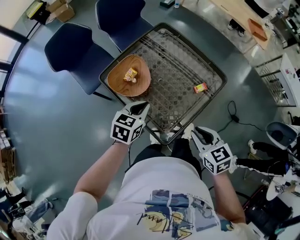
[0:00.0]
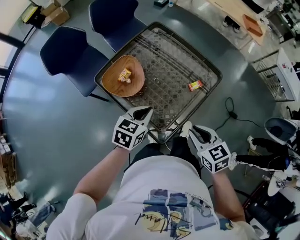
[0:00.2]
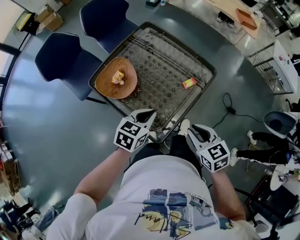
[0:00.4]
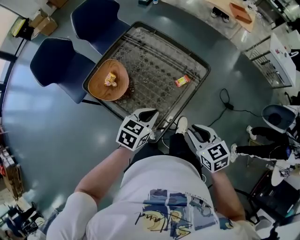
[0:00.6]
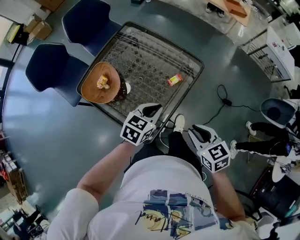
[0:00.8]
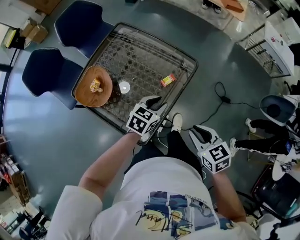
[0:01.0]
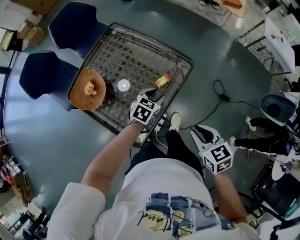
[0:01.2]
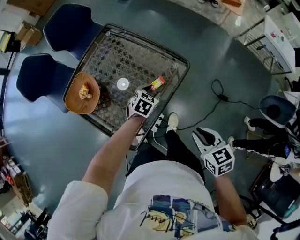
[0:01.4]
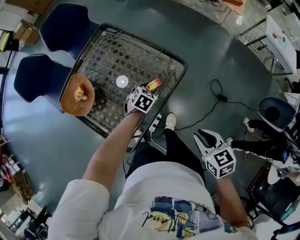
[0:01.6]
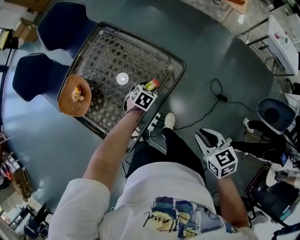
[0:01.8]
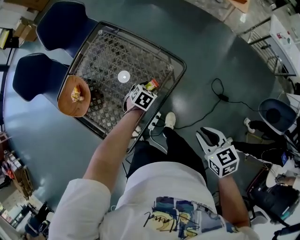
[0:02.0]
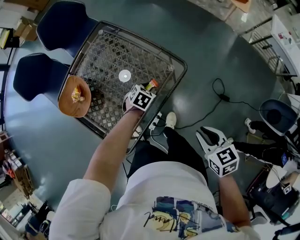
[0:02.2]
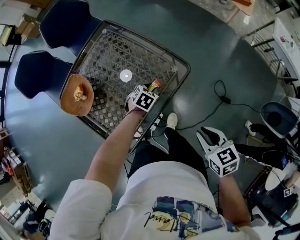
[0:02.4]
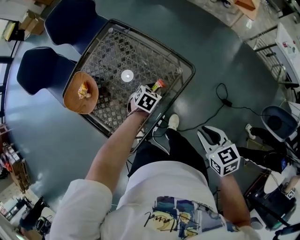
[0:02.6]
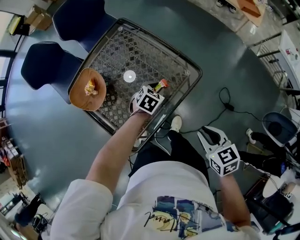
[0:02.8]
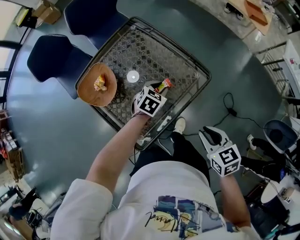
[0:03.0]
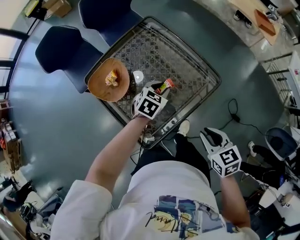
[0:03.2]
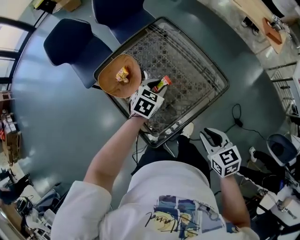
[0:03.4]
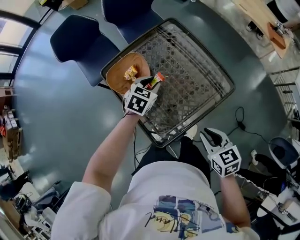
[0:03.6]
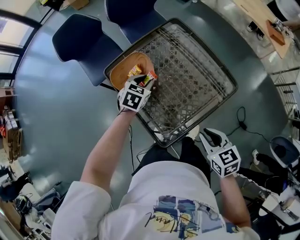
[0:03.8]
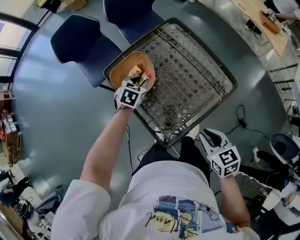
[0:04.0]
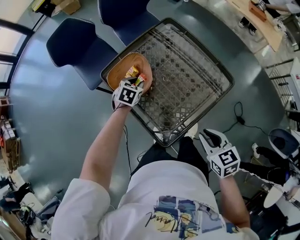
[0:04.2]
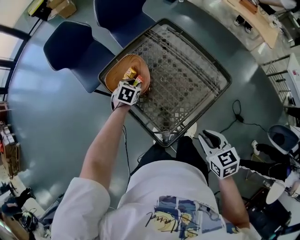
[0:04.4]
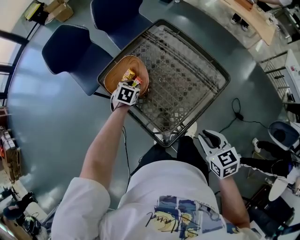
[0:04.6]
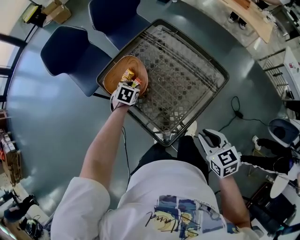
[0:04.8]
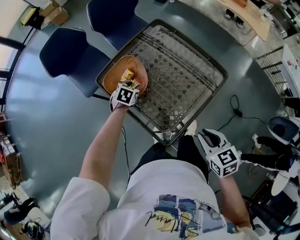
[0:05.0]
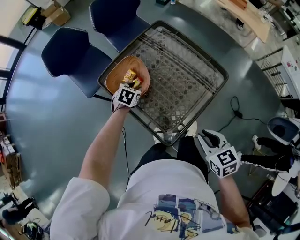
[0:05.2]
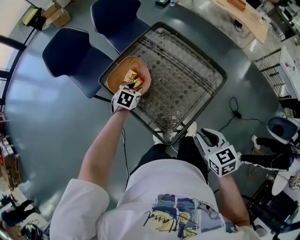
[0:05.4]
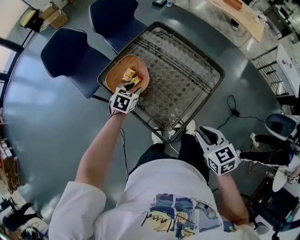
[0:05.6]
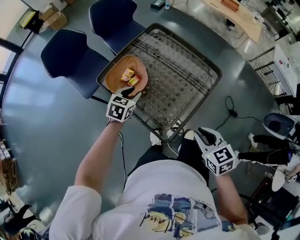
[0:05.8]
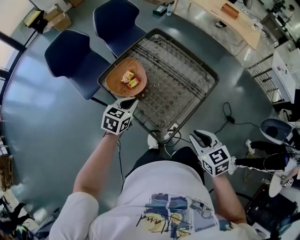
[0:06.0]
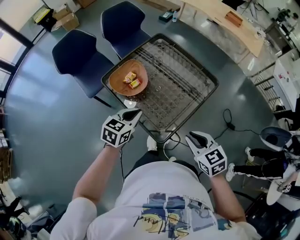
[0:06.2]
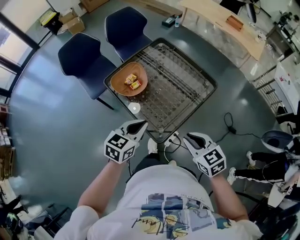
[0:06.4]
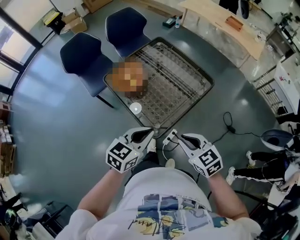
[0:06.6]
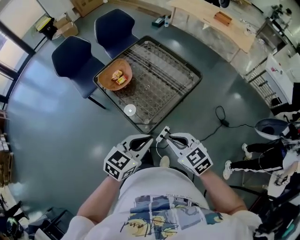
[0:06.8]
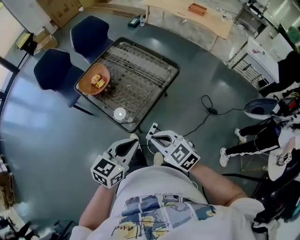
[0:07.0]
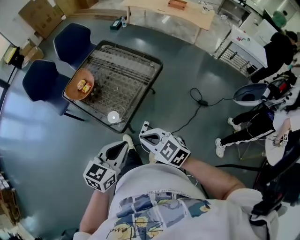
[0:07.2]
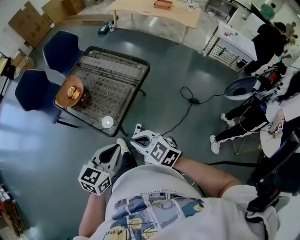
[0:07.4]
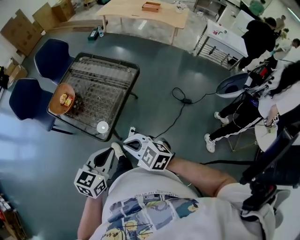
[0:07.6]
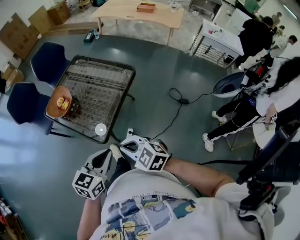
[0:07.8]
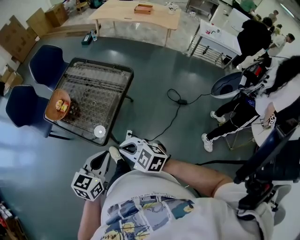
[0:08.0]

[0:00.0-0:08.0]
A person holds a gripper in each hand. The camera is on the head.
0:00.0 to 0:01.6: The left gripper travels to the right, downward and forward by roughly 35 cm, rotates roughly 30 degrees, and opens up. The right gripper heads to the right, covering roughly 25 cm.
0:01.6 to 0:03.2: The right gripper shifts some 10 cm to the left; the left gripper is displaced to the left and upward by some 15 cm.
0:03.2 to 0:04.8: The left gripper heads to the left, covering about 25 cm, while the right gripper travels to the left by approximately 10 cm.
0:04.8 to 0:06.4: The left gripper goes some 35 cm backward and upward, tilts its fingers approximately 30 degrees upward, and closes up. The right gripper moves backward, roughly 10 cm.
0:06.4 to 0:08.0: The right gripper goes about 10 cm backward; the left gripper is displaced backward and to the right by approximately 25 cm.

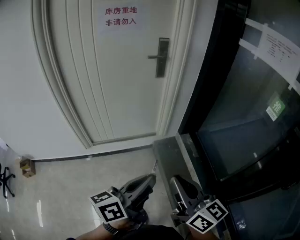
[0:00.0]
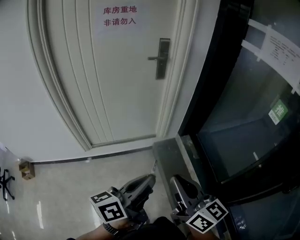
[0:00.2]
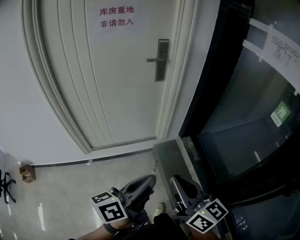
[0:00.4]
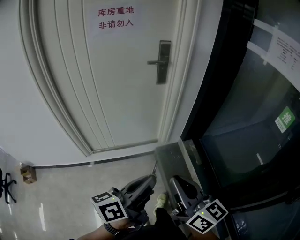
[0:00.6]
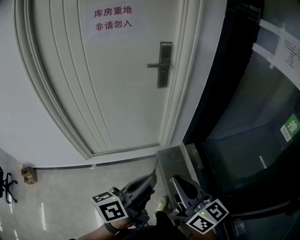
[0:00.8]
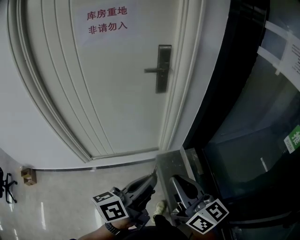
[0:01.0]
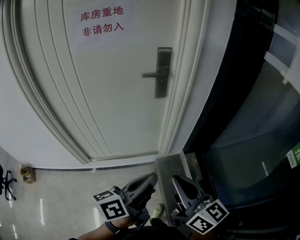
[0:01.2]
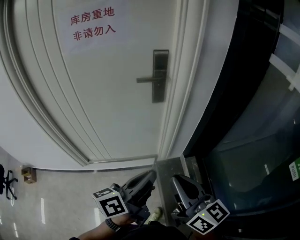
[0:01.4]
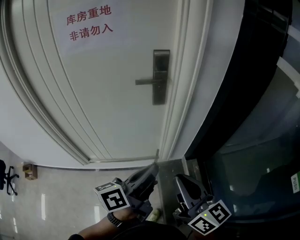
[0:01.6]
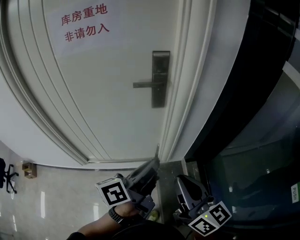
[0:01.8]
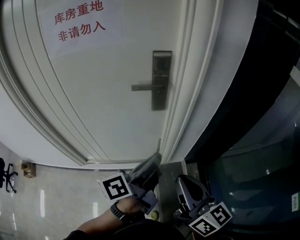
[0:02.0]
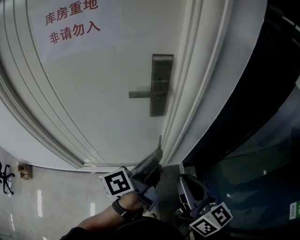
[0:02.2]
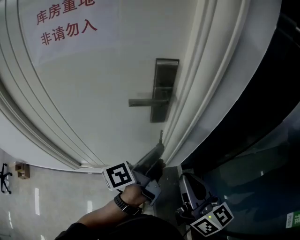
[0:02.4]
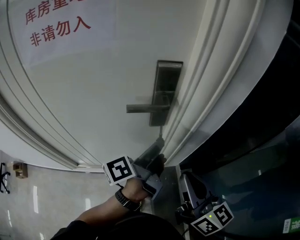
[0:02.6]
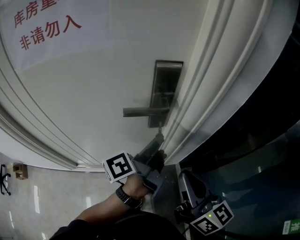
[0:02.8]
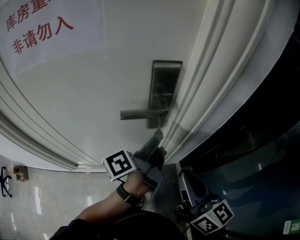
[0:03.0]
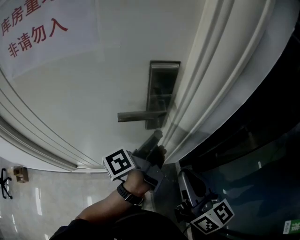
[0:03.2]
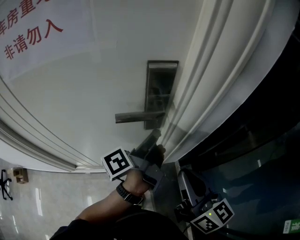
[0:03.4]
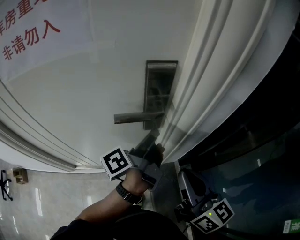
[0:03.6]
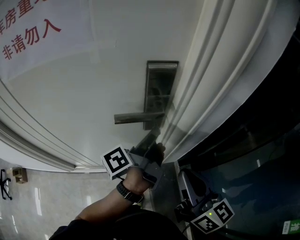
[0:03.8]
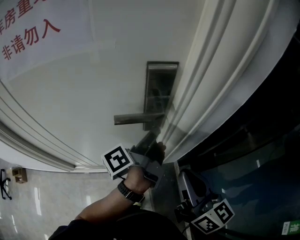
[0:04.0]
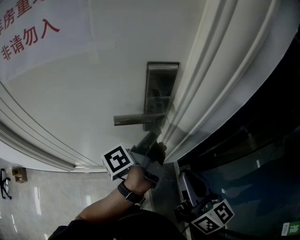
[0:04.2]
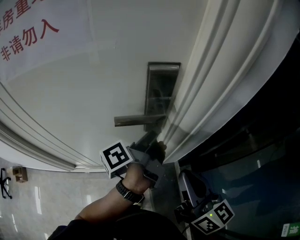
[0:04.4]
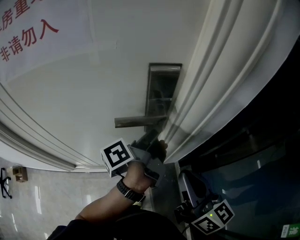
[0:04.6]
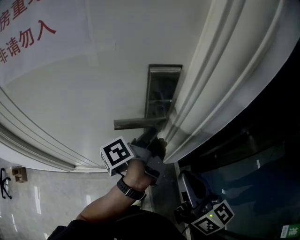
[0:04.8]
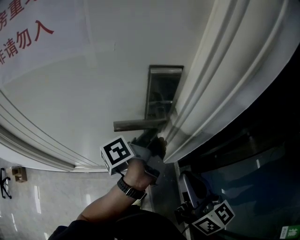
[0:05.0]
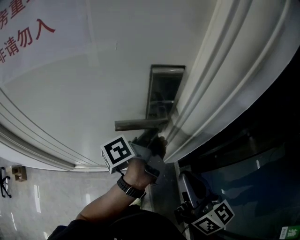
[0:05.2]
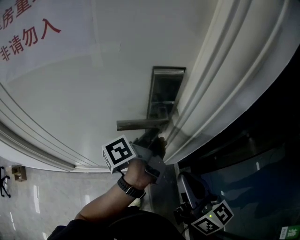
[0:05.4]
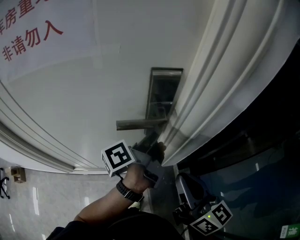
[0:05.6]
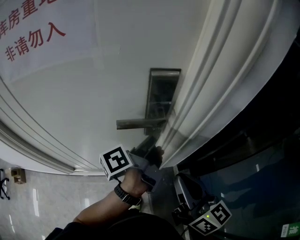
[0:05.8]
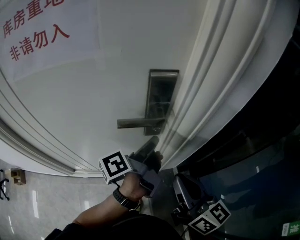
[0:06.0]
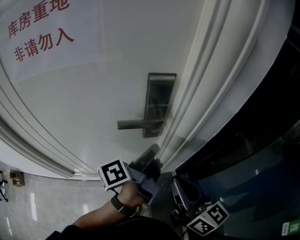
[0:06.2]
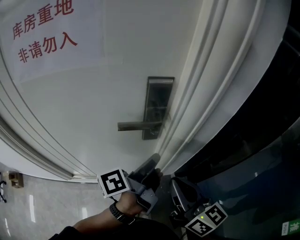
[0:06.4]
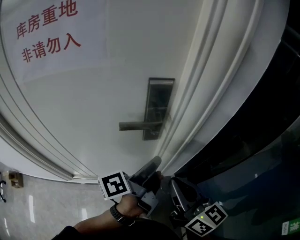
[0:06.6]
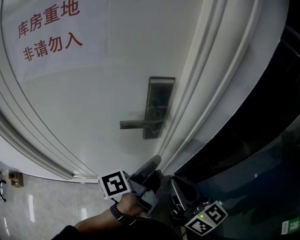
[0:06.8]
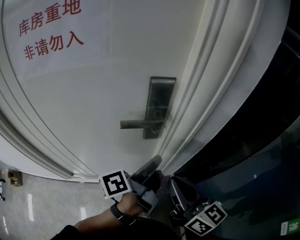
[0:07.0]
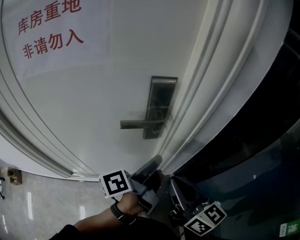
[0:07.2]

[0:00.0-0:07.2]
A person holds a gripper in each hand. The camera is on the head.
0:00.0 to 0:01.4: The right gripper moves approximately 30 cm.
0:01.4 to 0:02.8: The right gripper changes place by approximately 25 cm.

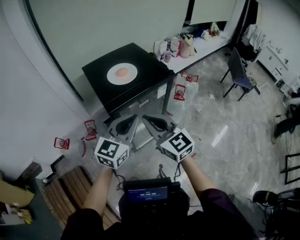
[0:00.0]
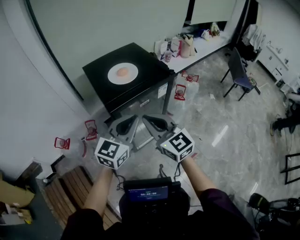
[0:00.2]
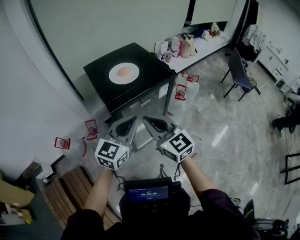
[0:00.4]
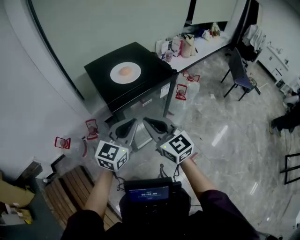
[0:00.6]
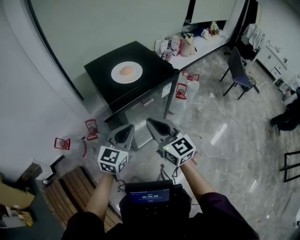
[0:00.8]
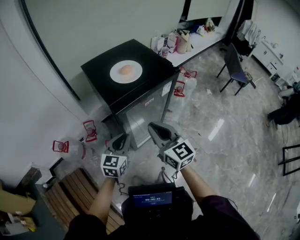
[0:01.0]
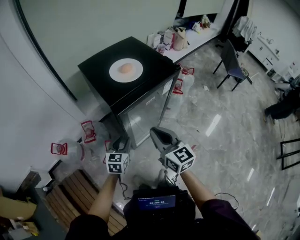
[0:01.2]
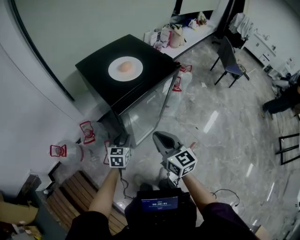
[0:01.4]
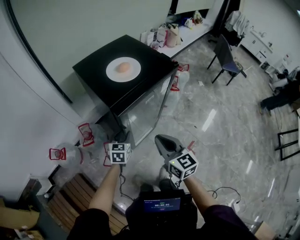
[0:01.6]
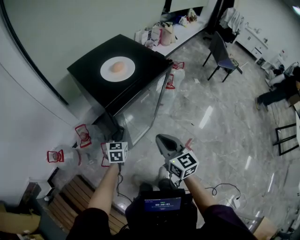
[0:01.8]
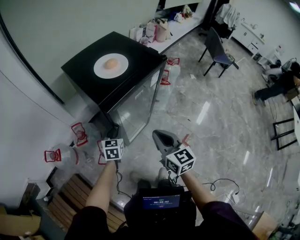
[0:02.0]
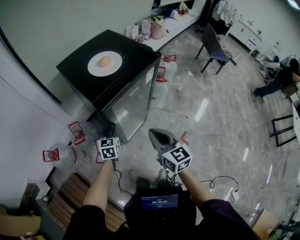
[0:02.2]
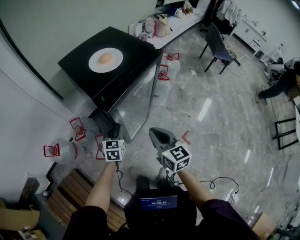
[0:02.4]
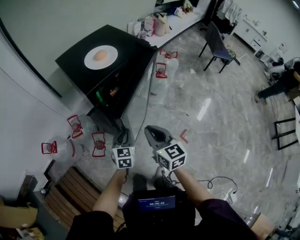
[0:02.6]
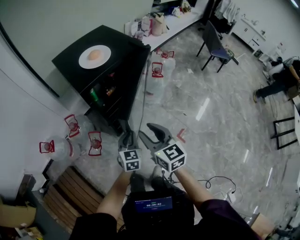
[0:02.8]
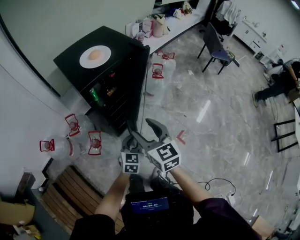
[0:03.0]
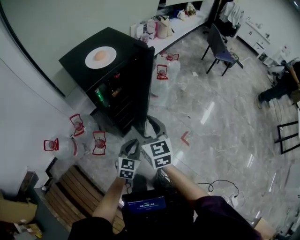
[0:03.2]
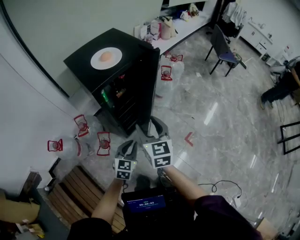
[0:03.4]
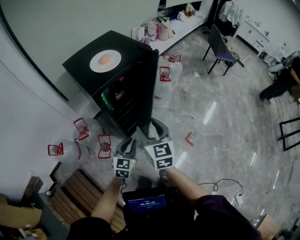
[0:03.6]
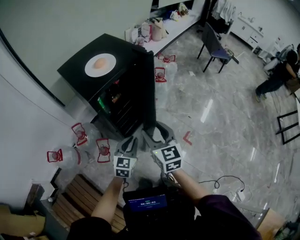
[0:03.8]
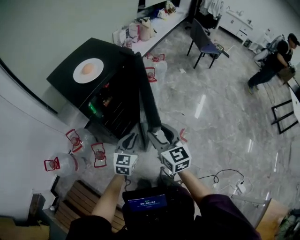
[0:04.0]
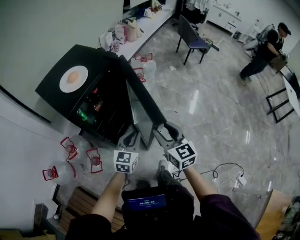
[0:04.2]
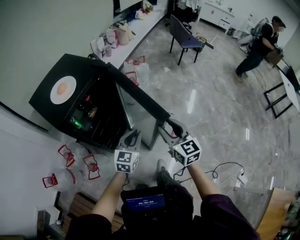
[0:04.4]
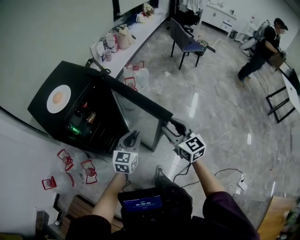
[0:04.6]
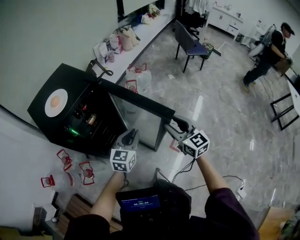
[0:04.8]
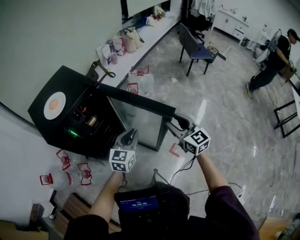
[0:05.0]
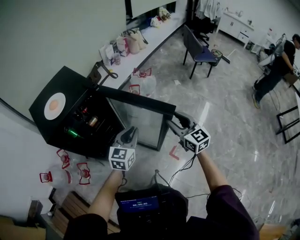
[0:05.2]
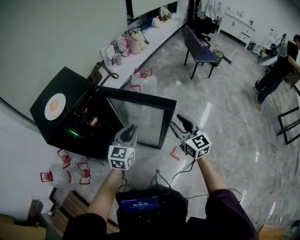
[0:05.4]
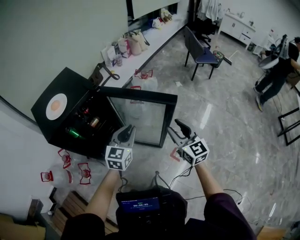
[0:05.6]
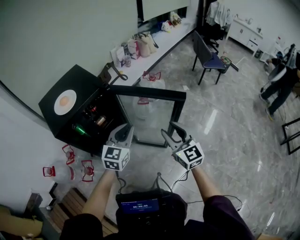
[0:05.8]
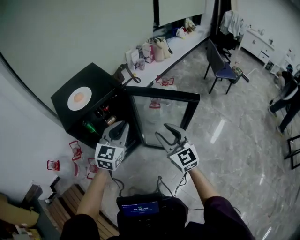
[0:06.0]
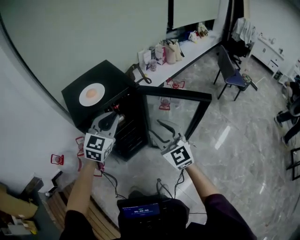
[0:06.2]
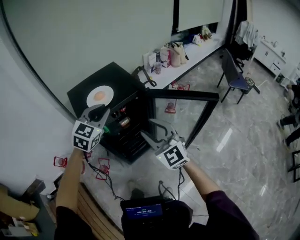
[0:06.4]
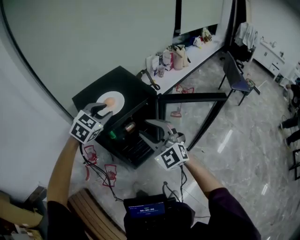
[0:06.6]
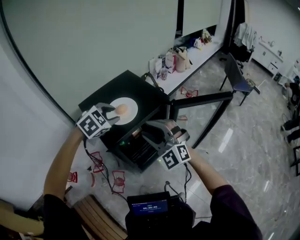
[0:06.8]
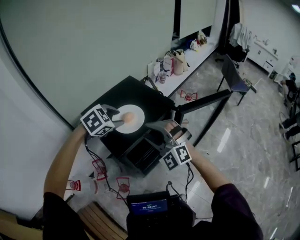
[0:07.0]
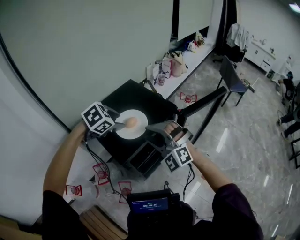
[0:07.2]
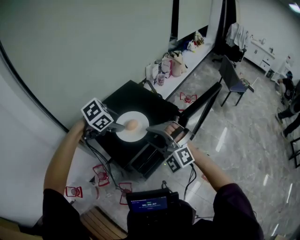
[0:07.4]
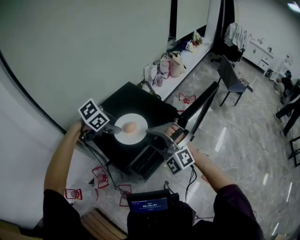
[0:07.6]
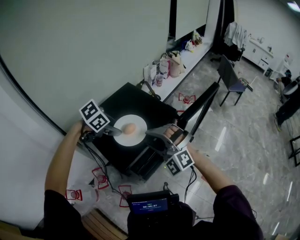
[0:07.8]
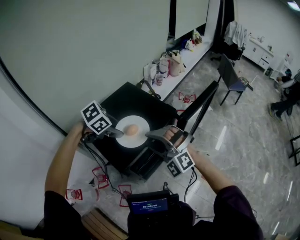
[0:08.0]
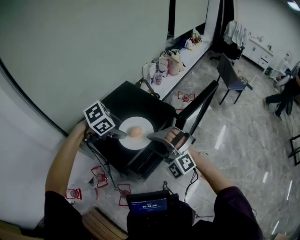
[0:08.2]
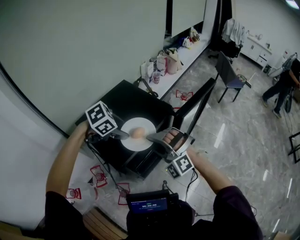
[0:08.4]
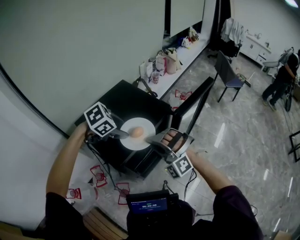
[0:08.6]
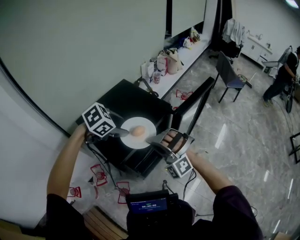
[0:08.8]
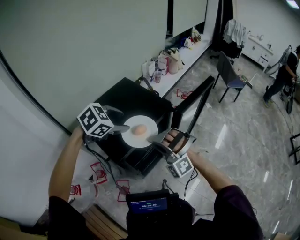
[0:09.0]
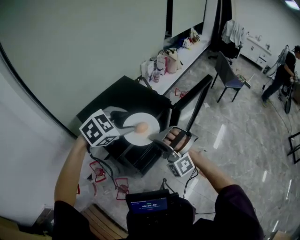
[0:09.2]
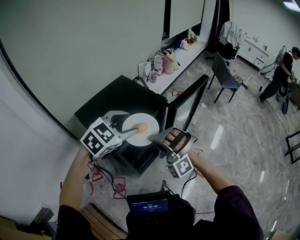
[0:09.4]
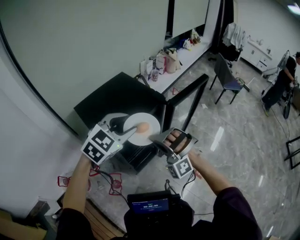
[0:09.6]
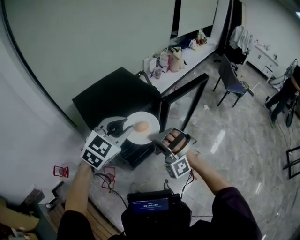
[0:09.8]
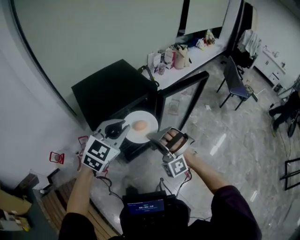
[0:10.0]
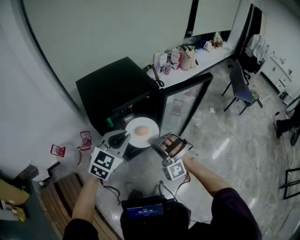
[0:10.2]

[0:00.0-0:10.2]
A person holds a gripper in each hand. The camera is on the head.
0:00.0 to 0:01.4: The right gripper goes about 10 cm downward, and swivels some 20 degrees, while the left gripper travels downward and to the left by roughly 30 cm, turns by roughly 30 degrees, and opens up.
0:01.4 to 0:03.0: The right gripper goes about 10 cm backward and to the right, and opens its fingers. The left gripper is displaced to the right and backward by about 20 cm.
0:03.0 to 0:04.4: The left gripper goes roughly 15 cm to the right, upward and forward, and swivels about 20 degrees; the right gripper shifts some 20 cm to the right, and changes its angle by approximately 20 degrees.
0:04.4 to 0:05.8: The left gripper travels forward, upward and to the right by approximately 15 cm. Meanwhile the right gripper is displaced forward and to the right by some 15 cm.
0:05.8 to 0:07.2: The two grippers travel together, to the left and forward, about 40 cm. The right gripper twists roughly 60 degrees counterclockwise, seen from behind; the left gripper angles its fingers downward, by some 50 degrees, and opens up.
0:07.2 to 0:08.8: The right gripper changes place by approximately 5 cm, and closes up. Meanwhile the left gripper moves approximately 5 cm.
0:08.8 to 0:10.2: The left gripper reaches some 10 cm upward, then returns, tips its fingers upward by about 40 degrees, and closes up, while the right gripper moves roughly 20 cm.
